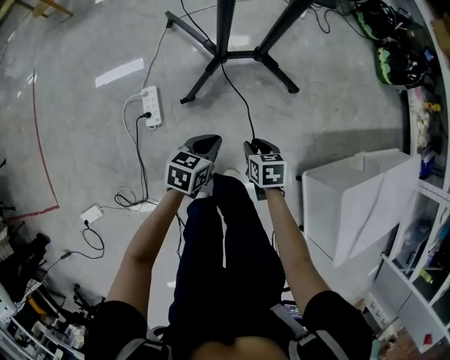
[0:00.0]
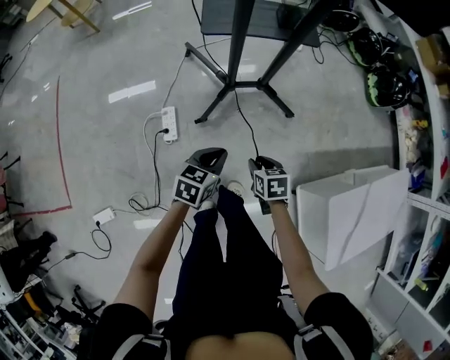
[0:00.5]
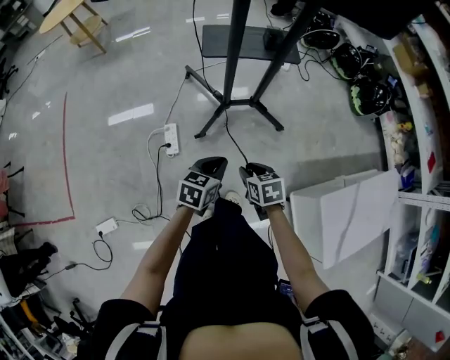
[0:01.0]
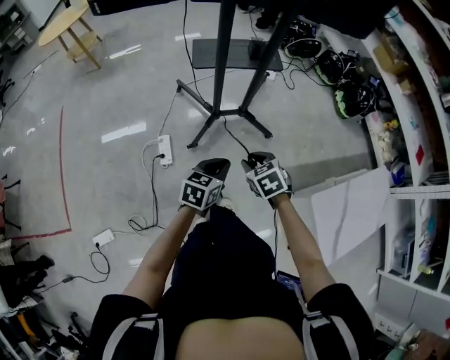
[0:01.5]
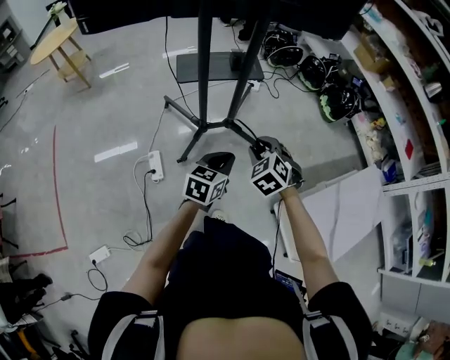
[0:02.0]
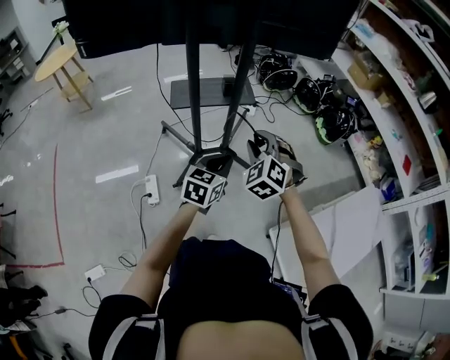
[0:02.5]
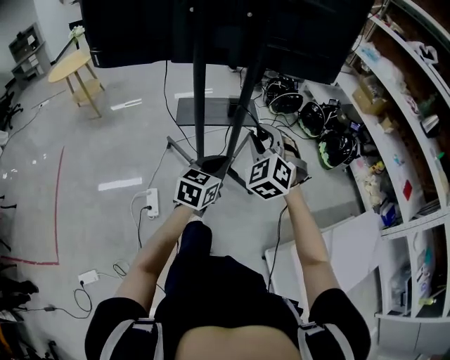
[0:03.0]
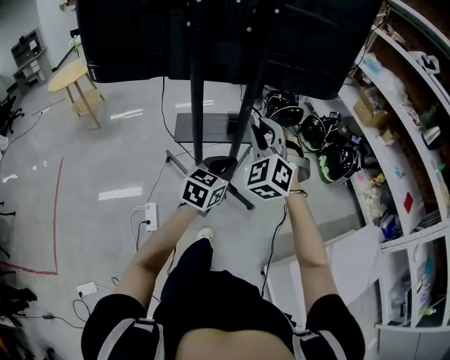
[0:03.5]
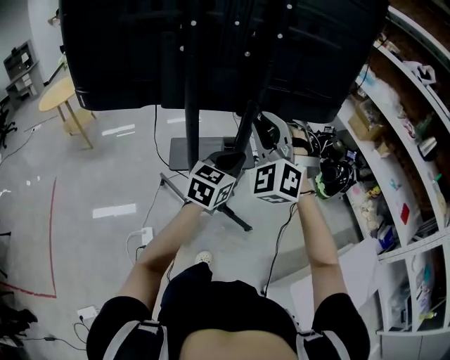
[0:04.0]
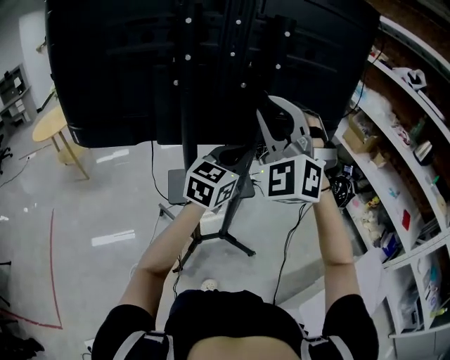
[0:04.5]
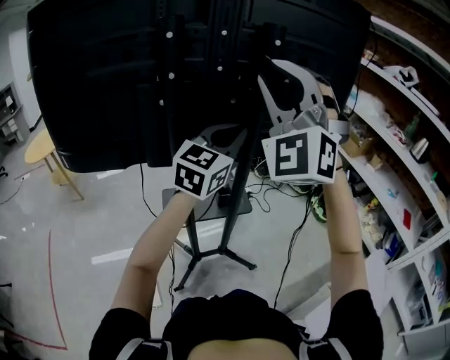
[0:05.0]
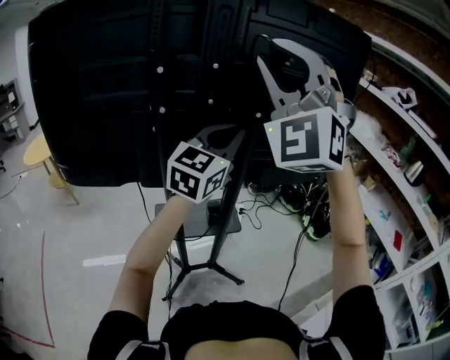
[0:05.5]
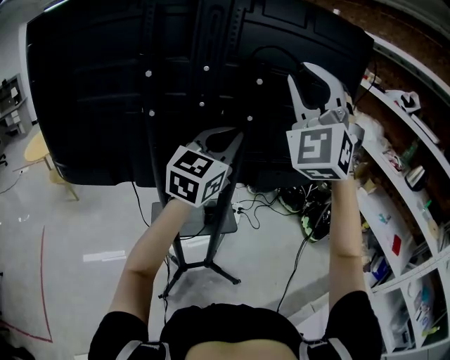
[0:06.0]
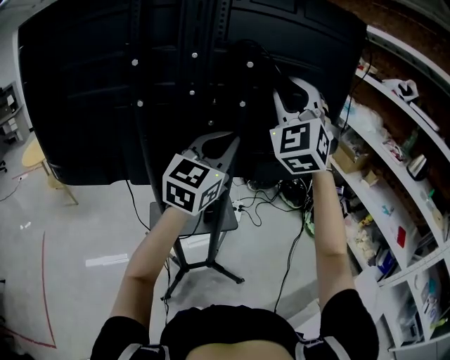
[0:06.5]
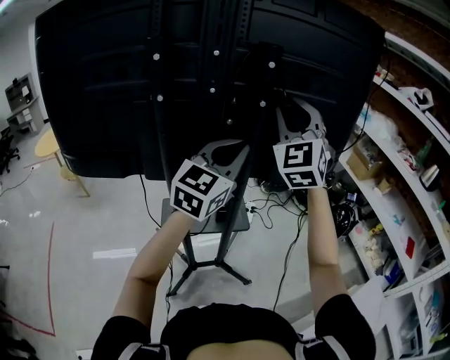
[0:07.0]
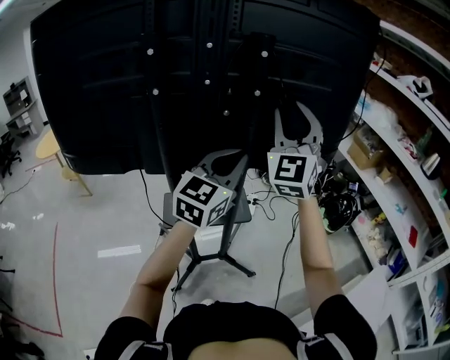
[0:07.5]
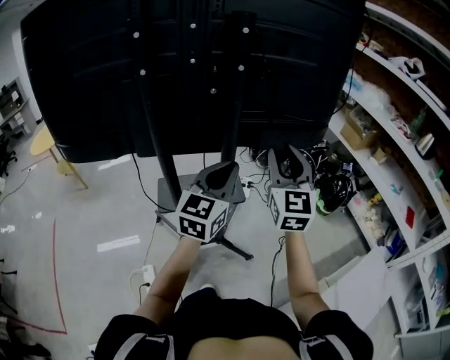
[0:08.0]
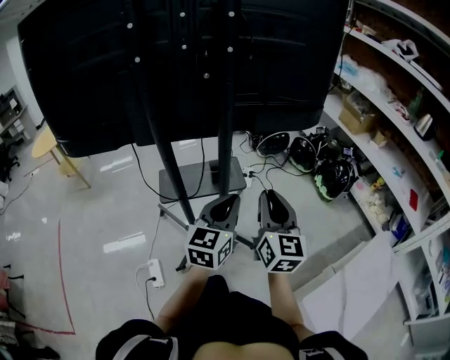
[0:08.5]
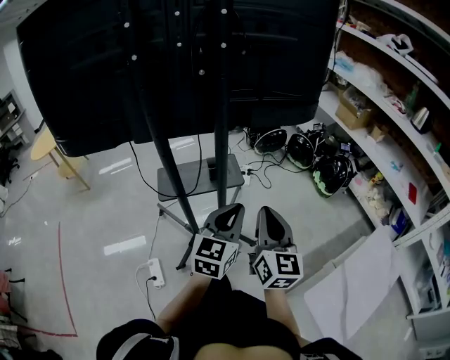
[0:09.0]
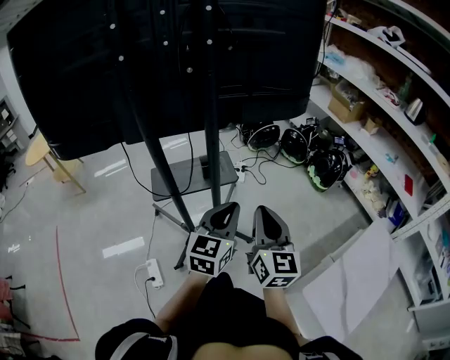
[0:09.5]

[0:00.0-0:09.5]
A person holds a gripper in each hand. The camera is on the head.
0:00.0 to 0:02.0: Both grippers move upward, approximately 40 cm. The left gripper turns by about 20 degrees. Meanwhile the right gripper twists roughly 50 degrees counterclockwise, seen from behind.
0:02.0 to 0:04.0: The right gripper heads upward and forward, covering about 40 cm, and tips its fingers upward by approximately 40 degrees. Meanwhile the left gripper is displaced forward and upward by about 35 cm, and changes its angle by some 20 degrees.
0:04.0 to 0:05.5: The left gripper goes approximately 30 cm upward and forward, and changes its angle by some 20 degrees, while the right gripper heads upward, covering roughly 30 cm, and changes its angle by roughly 30 degrees.
0:05.5 to 0:07.5: The left gripper heads downward, covering approximately 10 cm, while the right gripper travels downward, to the right and forward by roughly 20 cm, and swivels roughly 30 degrees.
0:07.5 to 0:09.5: The right gripper moves downward and backward, about 40 cm, rotates around the line of its fingers by roughly 50 degrees, clockwise from behind, and closes up, while the left gripper moves downward, backward and to the right, some 30 cm.

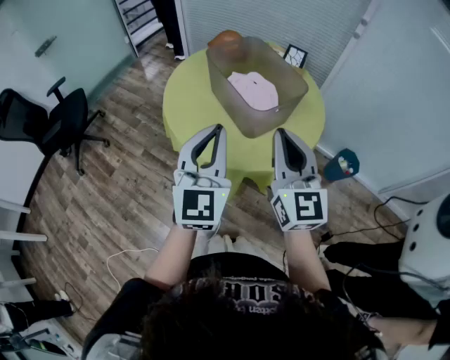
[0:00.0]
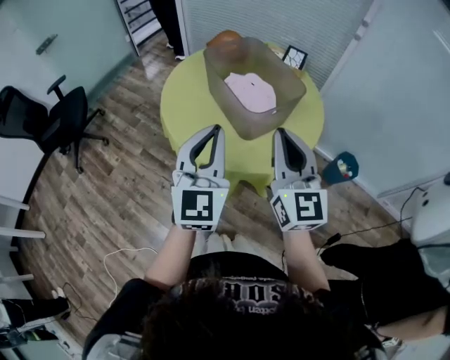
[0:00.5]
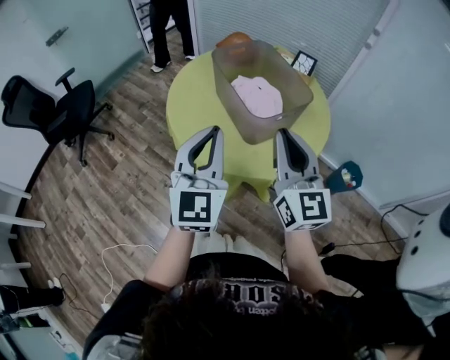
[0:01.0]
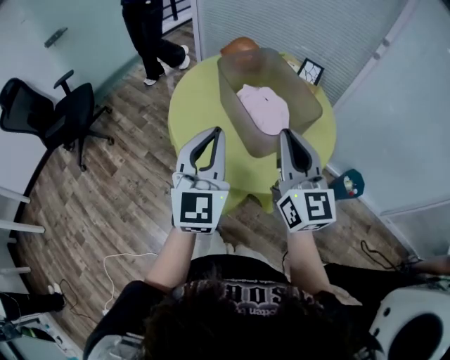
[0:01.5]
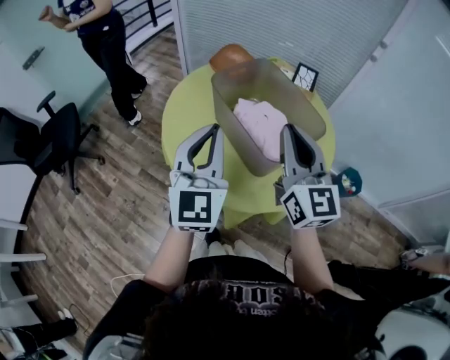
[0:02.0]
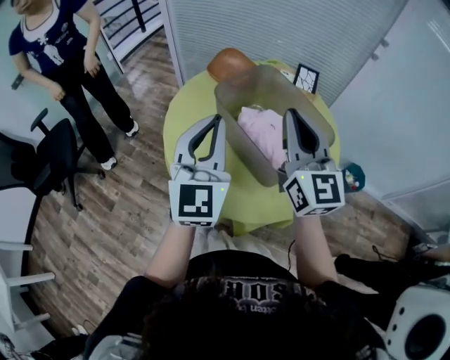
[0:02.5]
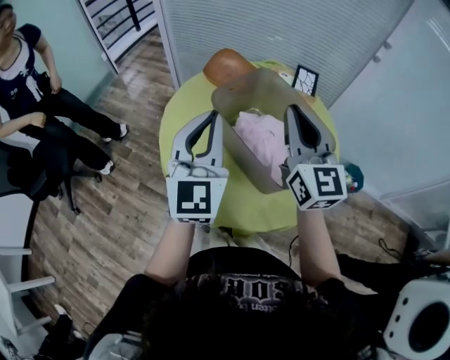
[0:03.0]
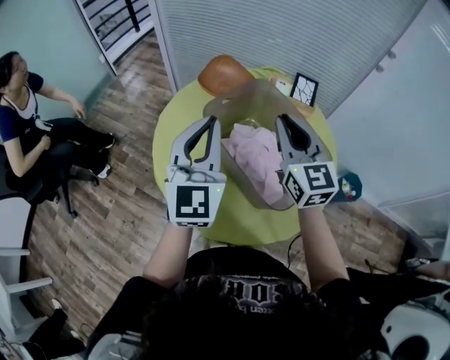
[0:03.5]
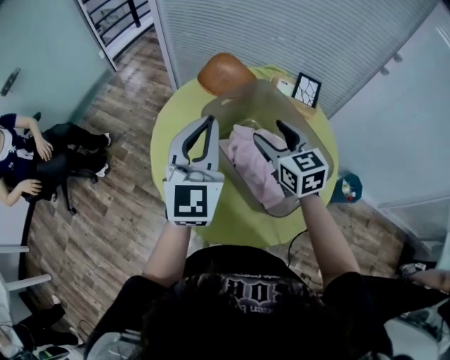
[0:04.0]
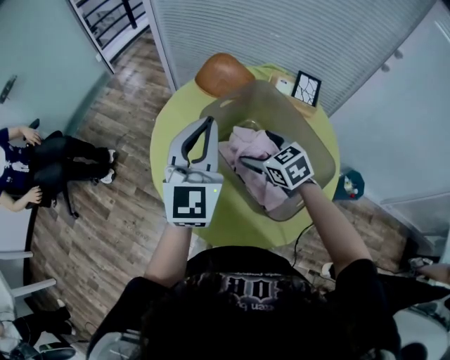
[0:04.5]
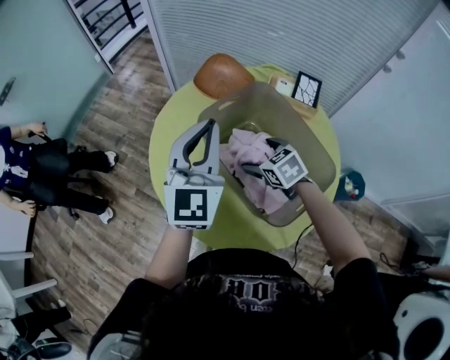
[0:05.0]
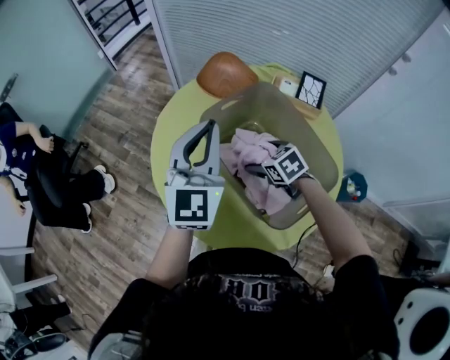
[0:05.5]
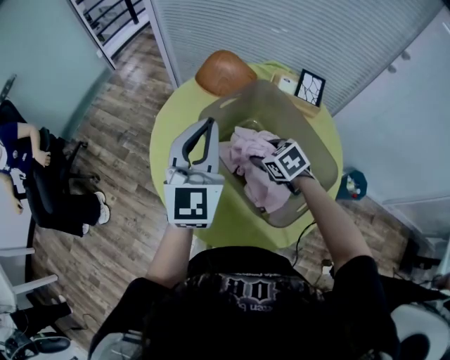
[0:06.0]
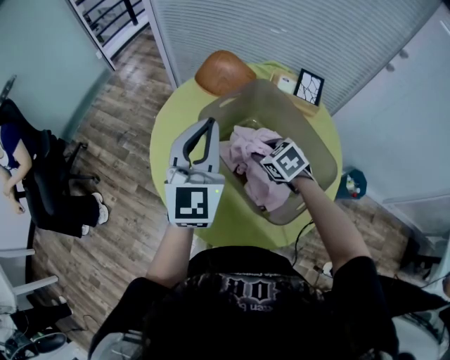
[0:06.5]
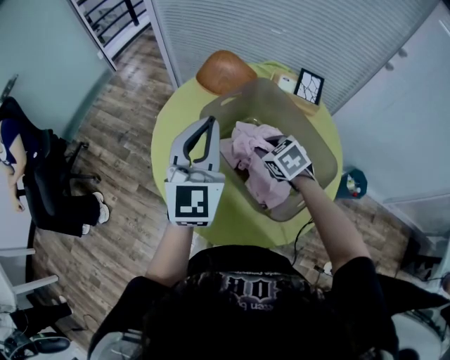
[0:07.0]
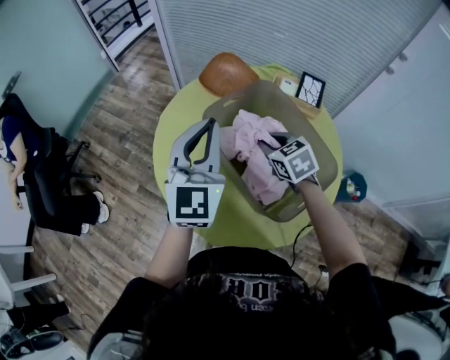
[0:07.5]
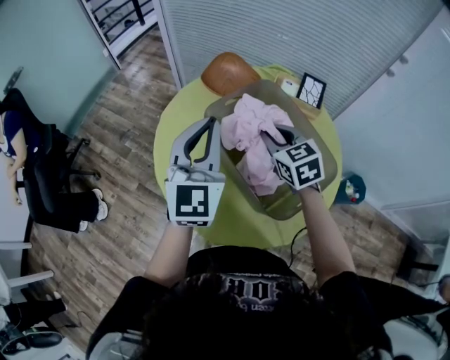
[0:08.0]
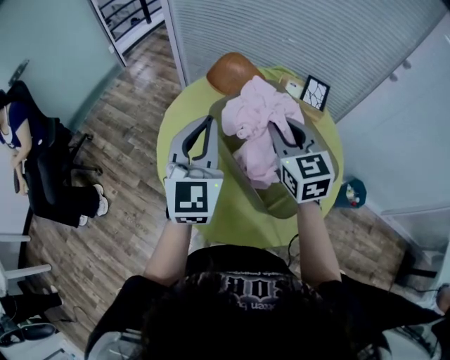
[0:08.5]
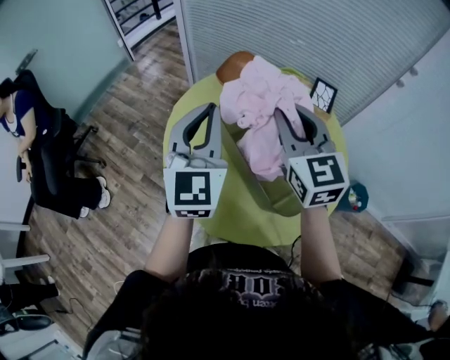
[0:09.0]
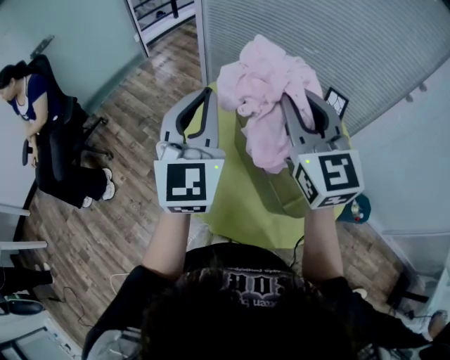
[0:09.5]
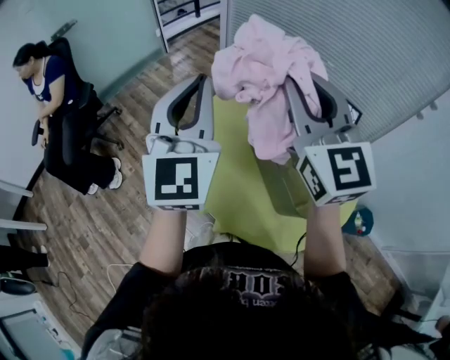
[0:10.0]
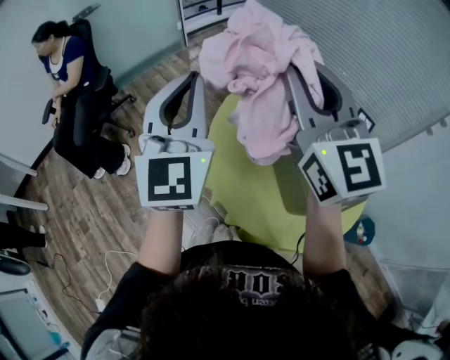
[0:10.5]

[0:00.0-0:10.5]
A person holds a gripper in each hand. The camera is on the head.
0:00.0 to 0:02.0: The two grippers go roughly 15 cm forward.
0:02.0 to 0:04.0: The left gripper shifts some 15 cm forward. The right gripper moves forward and downward, about 25 cm, changes its angle by approximately 30 degrees, and opens.
0:04.0 to 0:06.5: The right gripper heads downward, covering some 15 cm, and tilts its fingers about 30 degrees downward.
0:06.5 to 0:08.5: The right gripper goes about 20 cm upward, and tips its fingers upward by some 40 degrees.
0:08.5 to 0:10.5: The left gripper moves to the left and upward, some 20 cm, and swivels some 20 degrees, while the right gripper is displaced upward and to the left by roughly 30 cm, and turns by roughly 40 degrees.

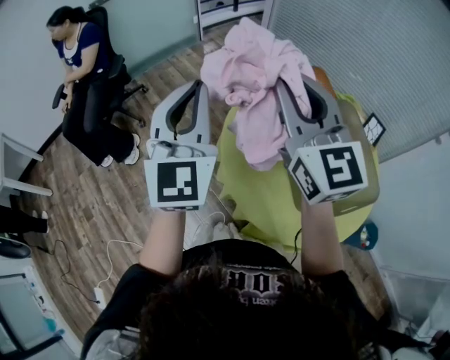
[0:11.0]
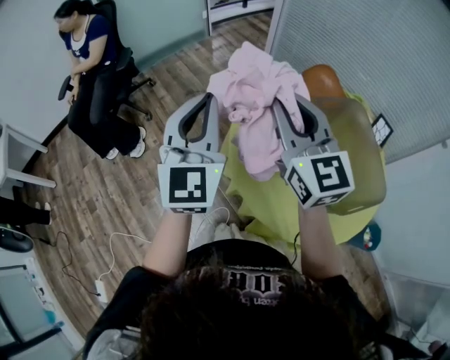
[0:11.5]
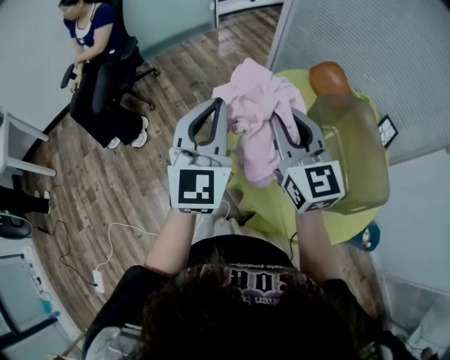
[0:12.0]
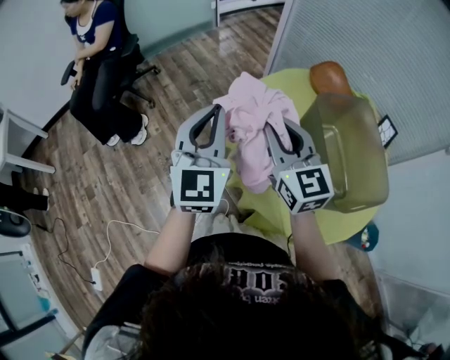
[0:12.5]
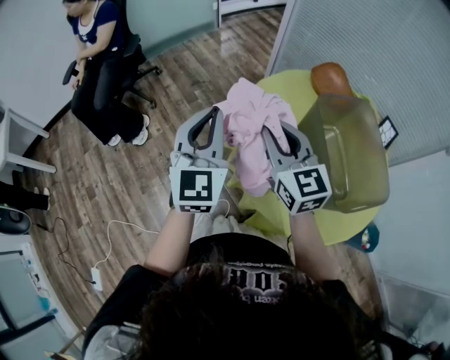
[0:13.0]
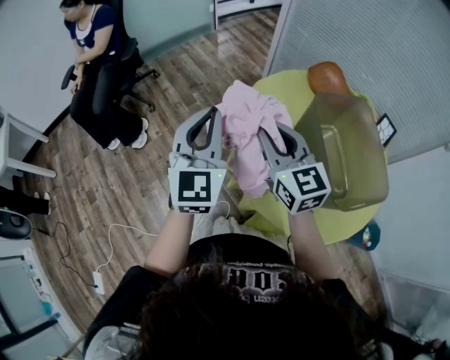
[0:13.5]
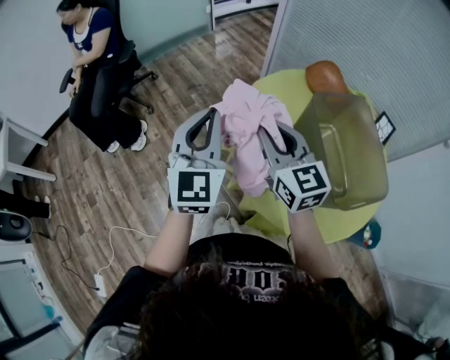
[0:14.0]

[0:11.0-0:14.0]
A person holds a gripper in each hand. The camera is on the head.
0:11.0 to 0:12.5: The left gripper goes approximately 10 cm downward. The right gripper moves downward, about 15 cm.
0:12.5 to 0:14.0: The grippers make only small movements.

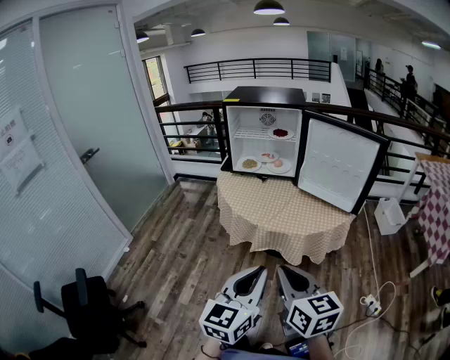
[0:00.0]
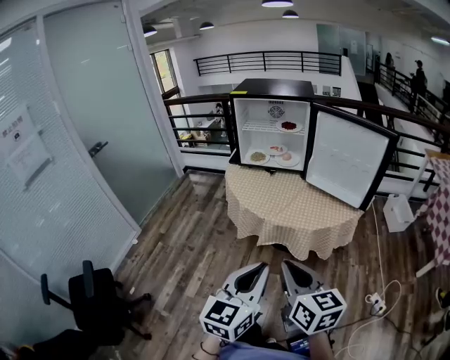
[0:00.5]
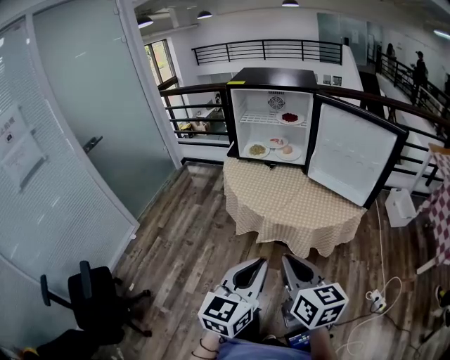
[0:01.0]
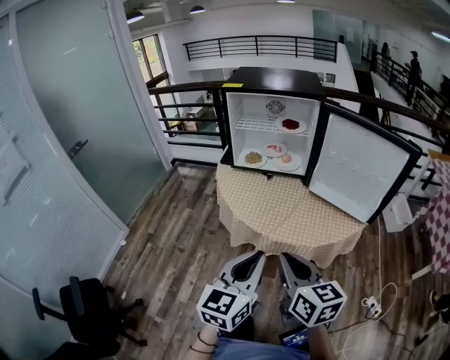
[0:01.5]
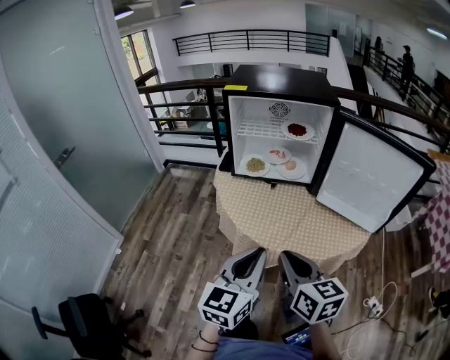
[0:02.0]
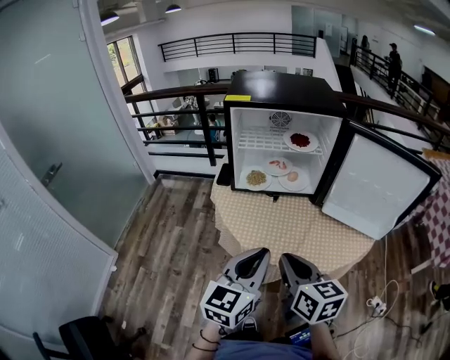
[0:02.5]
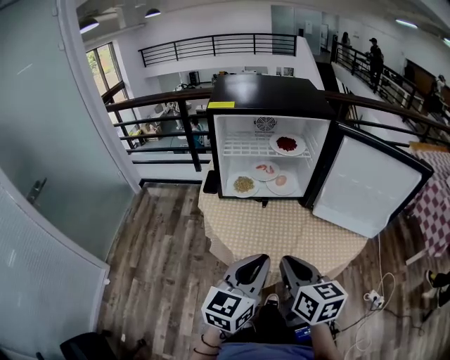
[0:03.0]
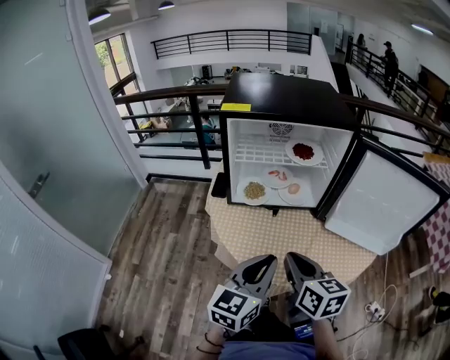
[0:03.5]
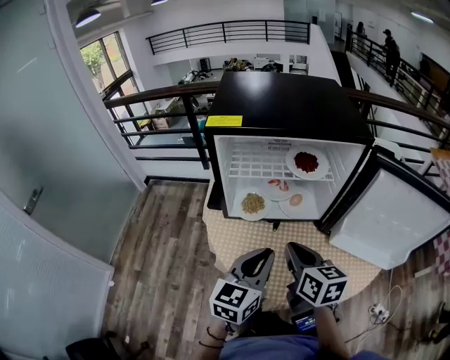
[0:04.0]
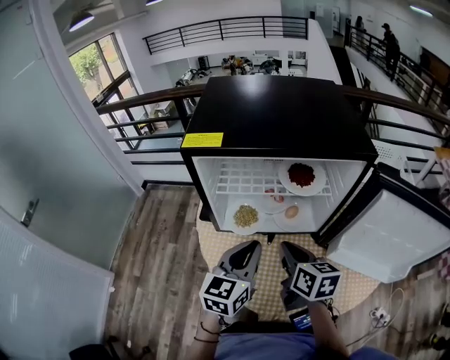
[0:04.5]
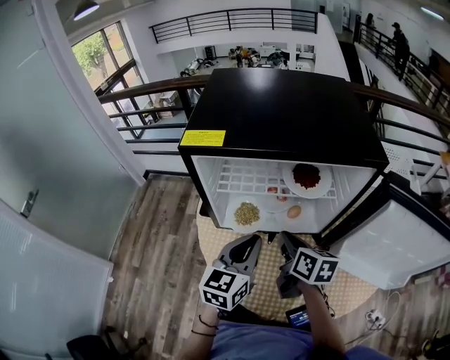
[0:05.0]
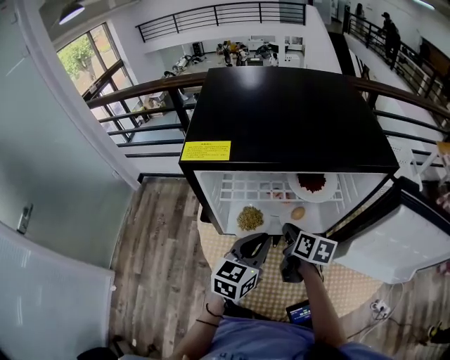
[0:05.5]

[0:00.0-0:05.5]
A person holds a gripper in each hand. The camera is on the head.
0:00.0 to 0:02.0: Both grippers travel together forward, some 25 cm.
0:02.0 to 0:03.5: Both grippers move forward, roughly 15 cm.
0:03.5 to 0:05.5: The right gripper moves forward and downward, some 35 cm, and swivels roughly 20 degrees; the left gripper shifts approximately 25 cm forward.
